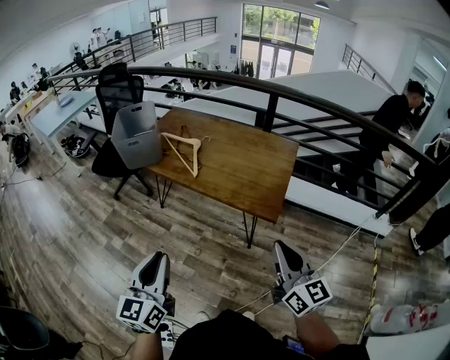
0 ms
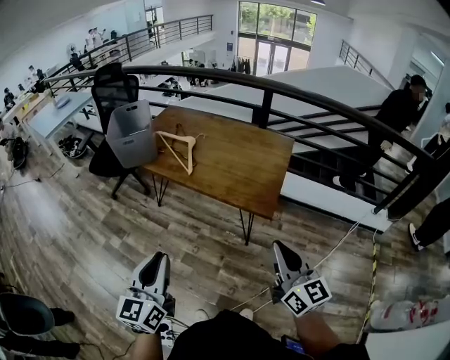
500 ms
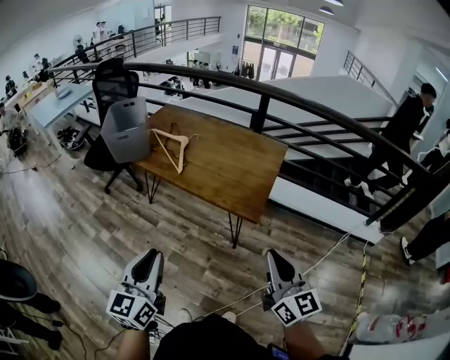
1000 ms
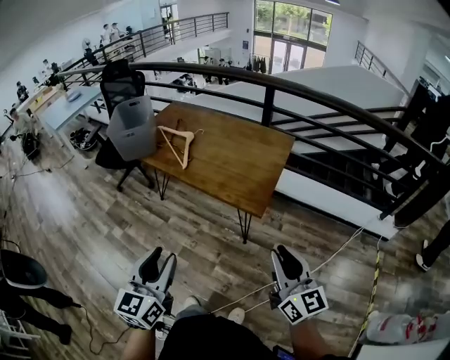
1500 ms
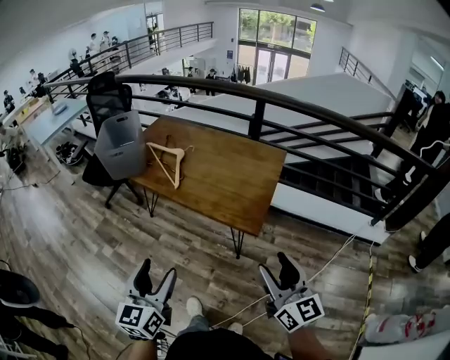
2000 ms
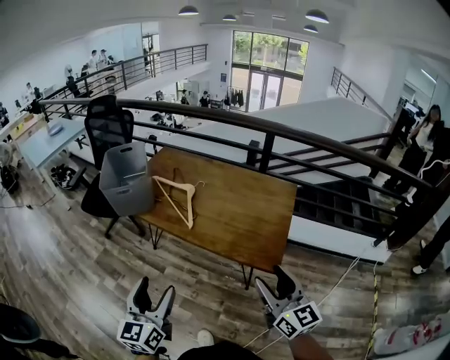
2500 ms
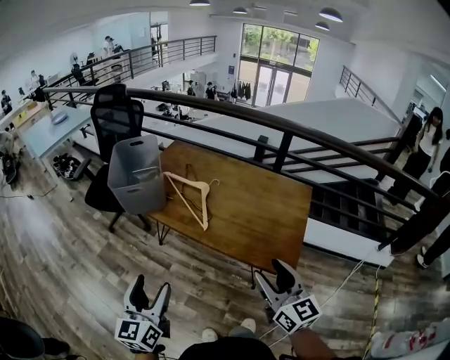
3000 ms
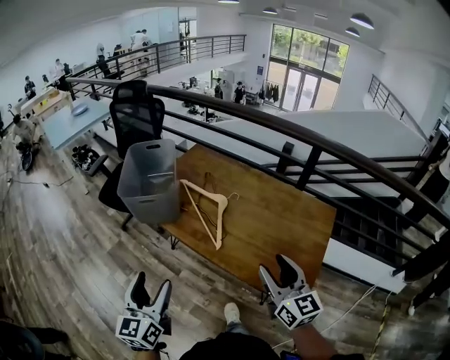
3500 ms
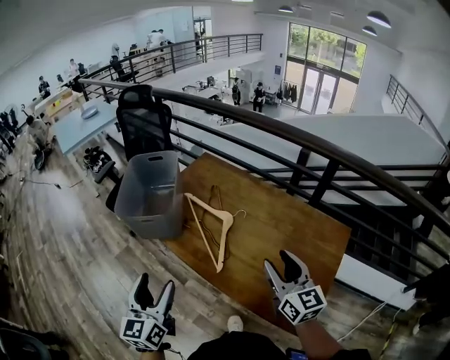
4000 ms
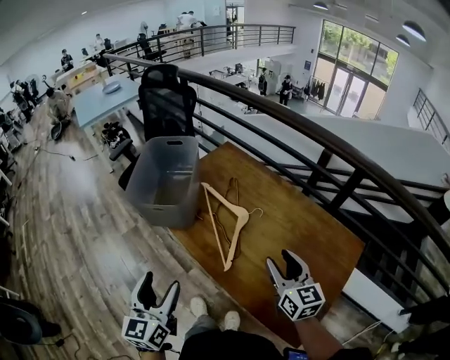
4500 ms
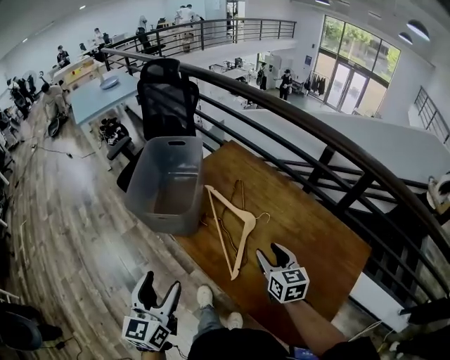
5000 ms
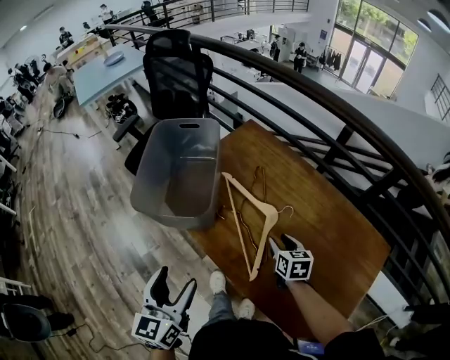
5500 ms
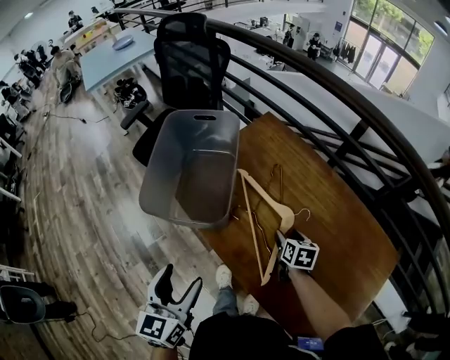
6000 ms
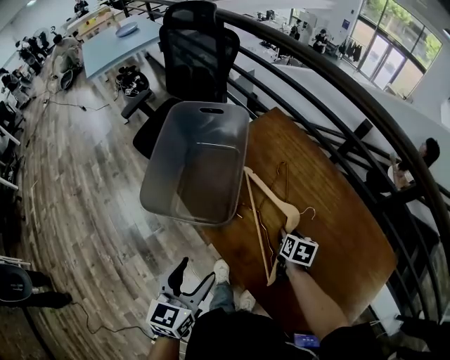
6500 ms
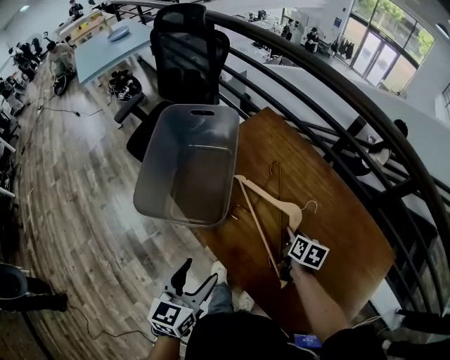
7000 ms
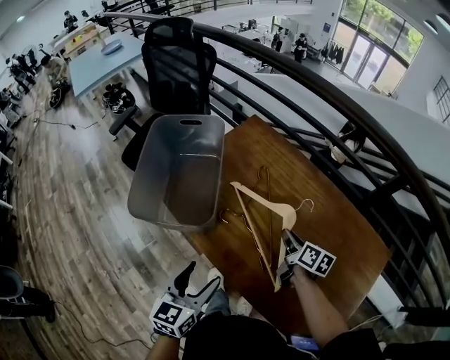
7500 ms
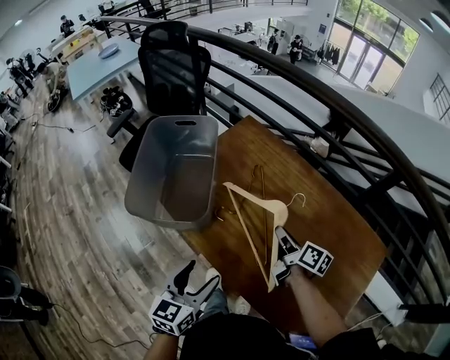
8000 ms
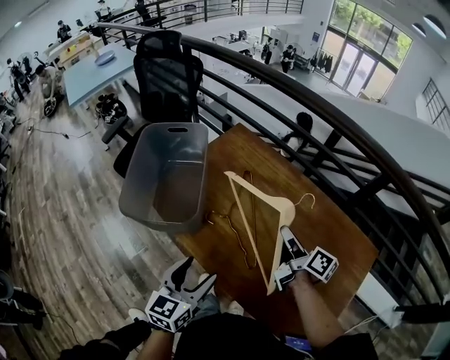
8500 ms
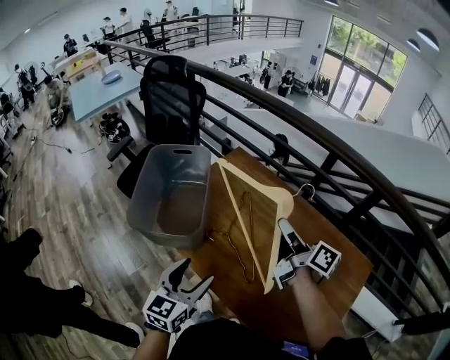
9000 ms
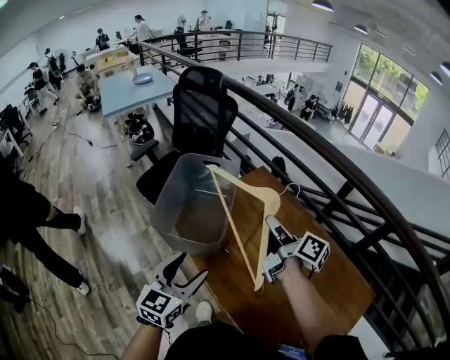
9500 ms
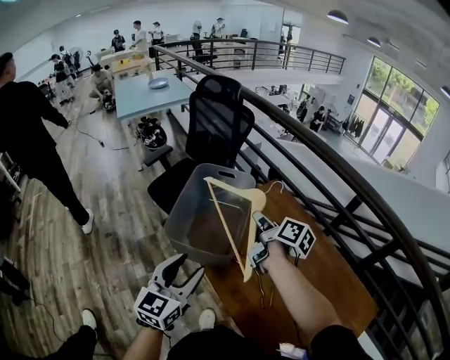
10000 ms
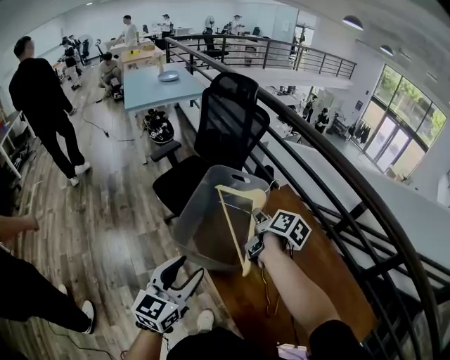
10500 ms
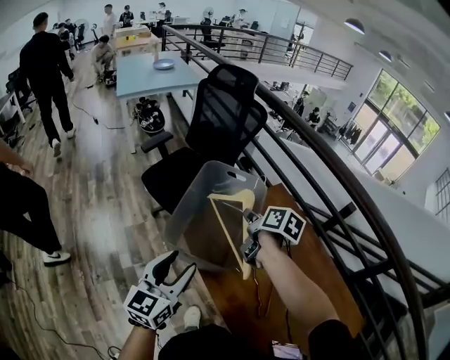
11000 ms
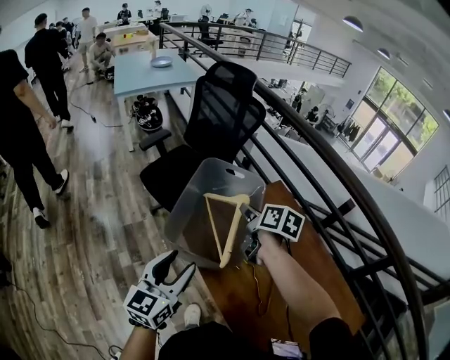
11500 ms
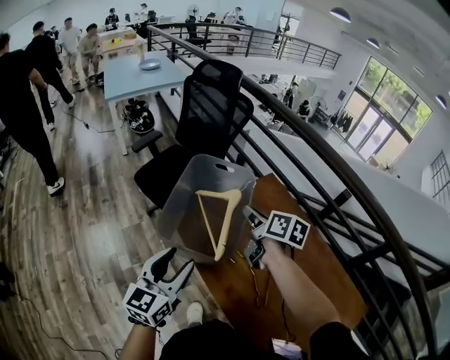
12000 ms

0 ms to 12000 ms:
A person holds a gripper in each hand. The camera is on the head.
0 ms to 2000 ms: Both grippers travel together to the right, some 10 cm. The left gripper opens its fingers. Meanwhile the right gripper opens its fingers.
2000 ms to 4000 ms: Both grippers travel together forward, some 40 cm.
4000 ms to 6000 ms: The left gripper shifts roughly 10 cm forward and downward, while the right gripper travels downward and forward by roughly 35 cm, and tips its fingers downward by about 40 degrees.
6000 ms to 8000 ms: The left gripper shifts some 10 cm to the right; the right gripper travels upward by some 10 cm, rotates some 40 degrees, and closes its fingers.
8000 ms to 10000 ms: The left gripper heads upward, to the left and forward, covering some 15 cm, and changes its angle by roughly 20 degrees, while the right gripper goes roughly 30 cm to the left, upward and forward.
10000 ms to 12000 ms: The left gripper shifts by some 5 cm, while the right gripper rotates some 20 degrees.

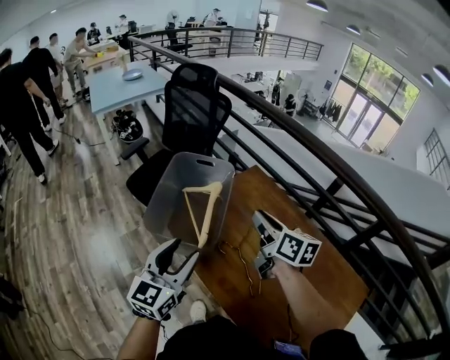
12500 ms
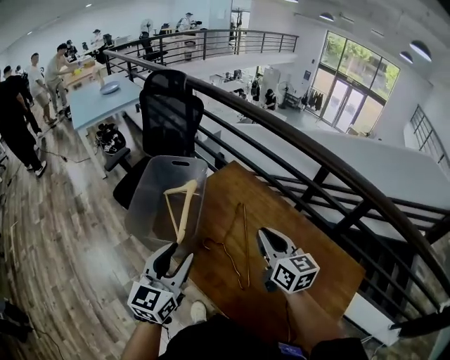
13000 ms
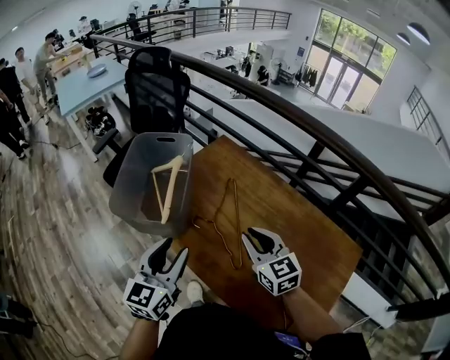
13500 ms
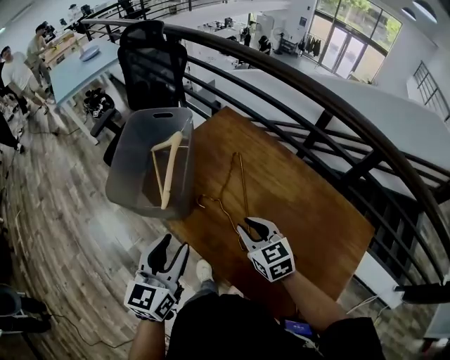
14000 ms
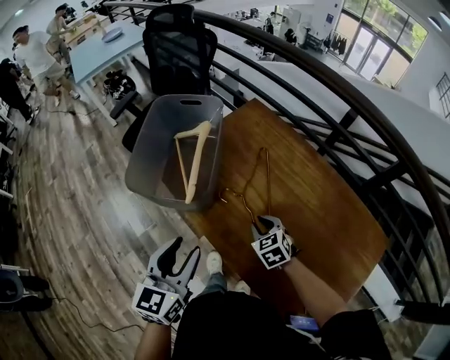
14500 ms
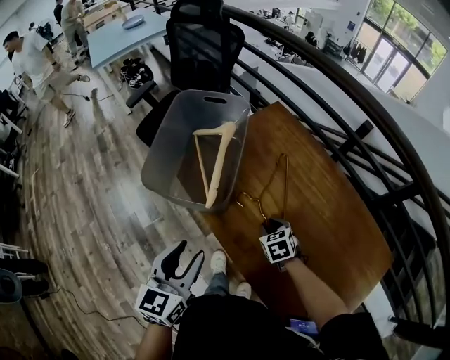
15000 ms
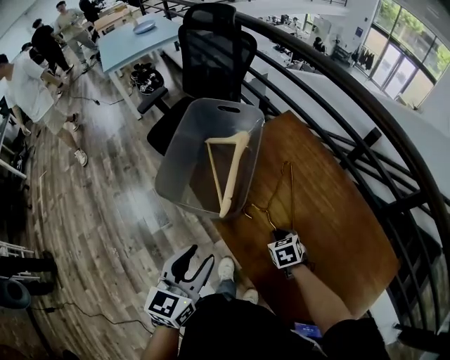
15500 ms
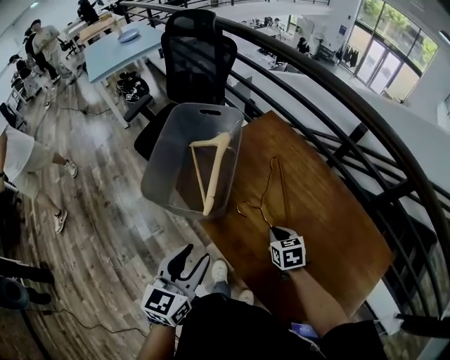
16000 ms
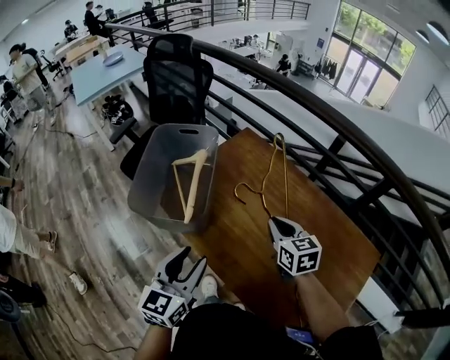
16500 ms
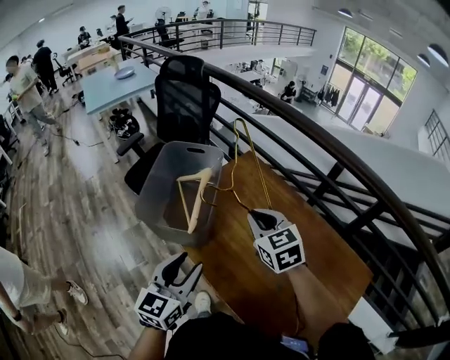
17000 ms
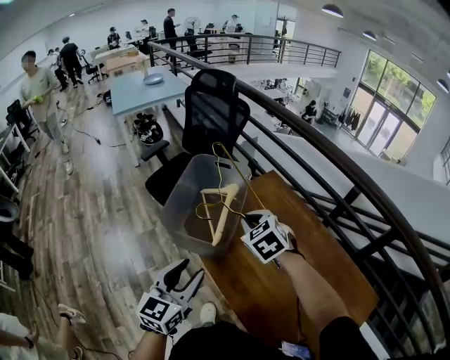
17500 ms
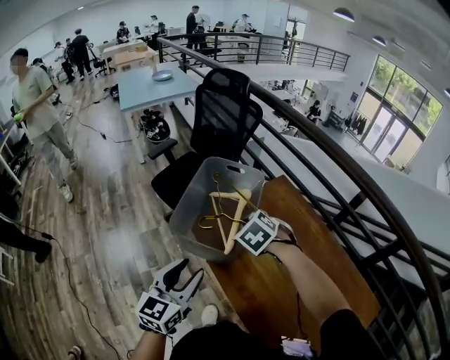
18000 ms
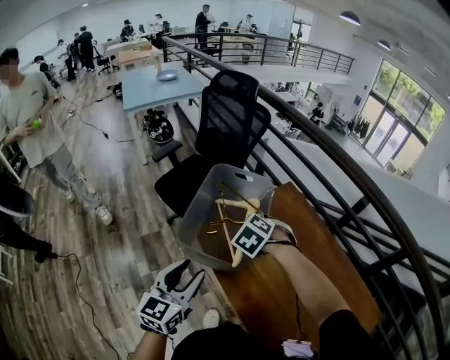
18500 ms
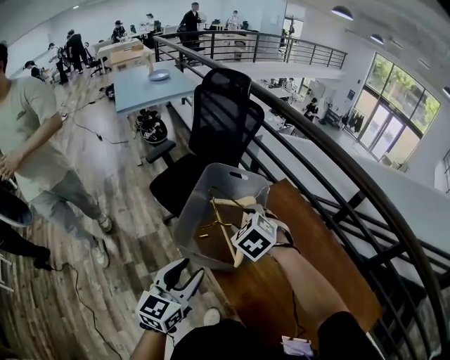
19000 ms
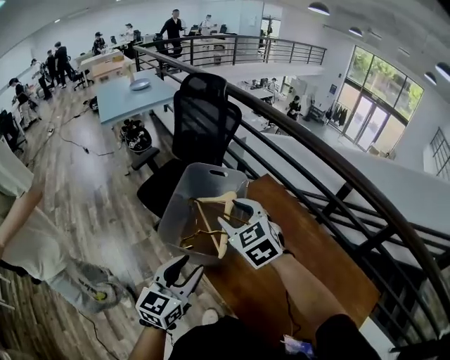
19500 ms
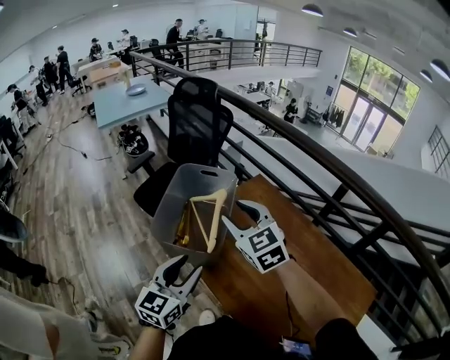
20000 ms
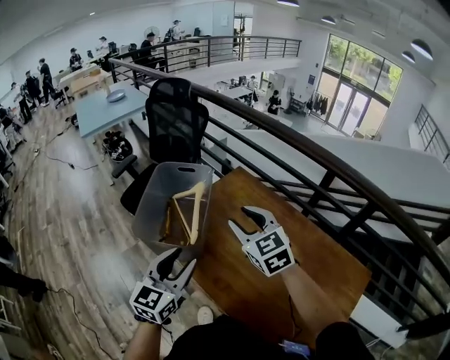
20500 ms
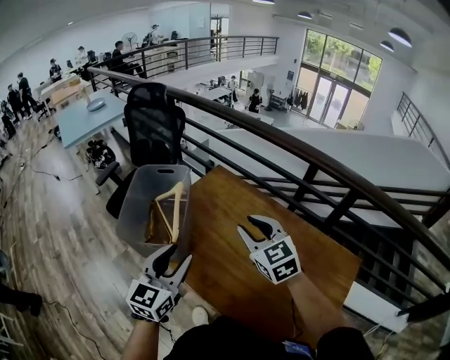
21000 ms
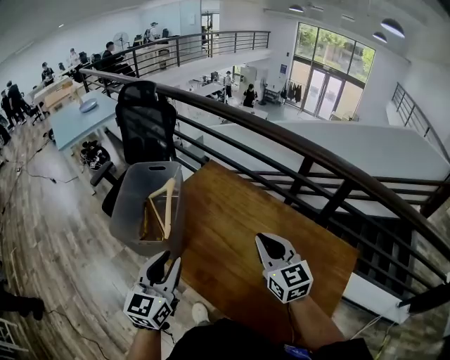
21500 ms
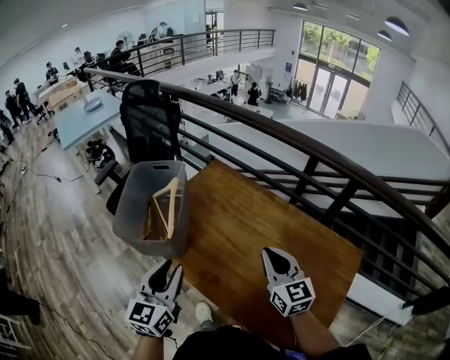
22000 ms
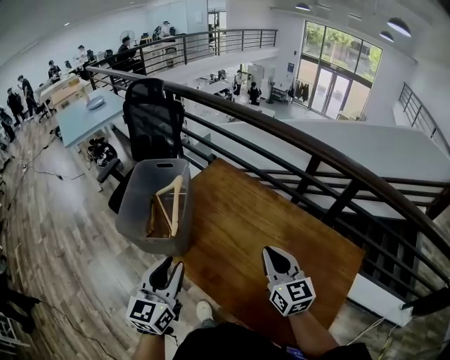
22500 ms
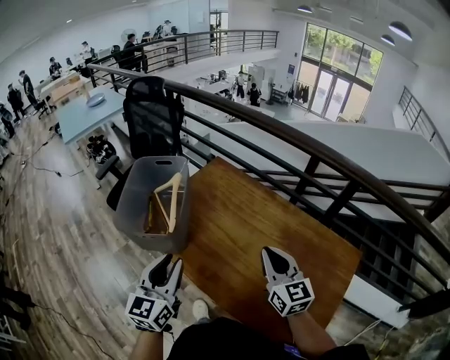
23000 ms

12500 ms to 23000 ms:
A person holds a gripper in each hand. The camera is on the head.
12500 ms to 14500 ms: The right gripper shifts roughly 30 cm downward and backward, and angles its fingers downward, by approximately 40 degrees. Meanwhile the left gripper heads backward and downward, covering about 10 cm.
14500 ms to 16500 ms: The right gripper is displaced upward by approximately 15 cm, and changes its angle by some 30 degrees.
16500 ms to 19000 ms: The left gripper heads to the left and forward, covering roughly 15 cm, while the right gripper travels to the left and forward by about 30 cm, rolls counterclockwise, seen from behind, by approximately 50 degrees, and opens.
19000 ms to 21000 ms: The left gripper heads to the right, covering about 15 cm. Meanwhile the right gripper travels to the right and backward by some 25 cm, and points its fingers about 30 degrees further upward.
21000 ms to 23000 ms: The left gripper ends up some 5 cm from where it was; the right gripper heads backward and to the right, covering some 10 cm, rotates approximately 20 degrees, and closes.

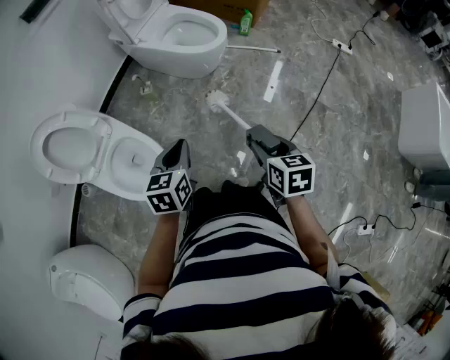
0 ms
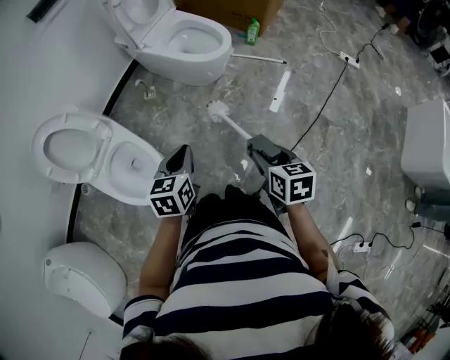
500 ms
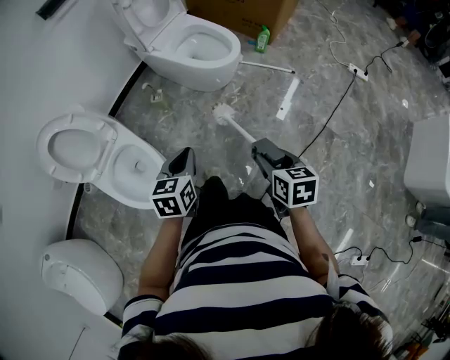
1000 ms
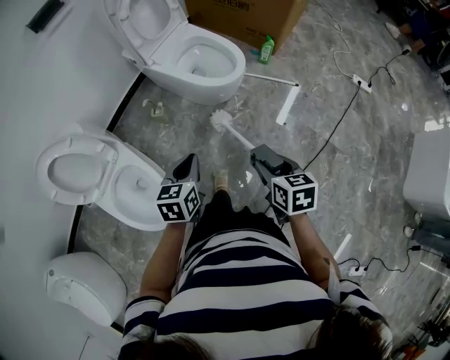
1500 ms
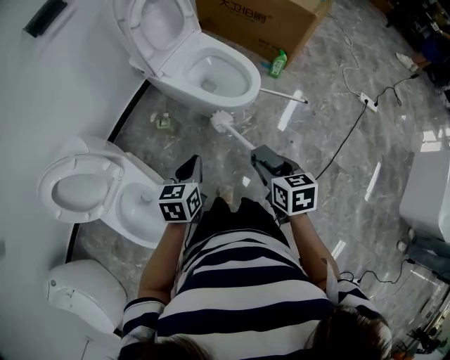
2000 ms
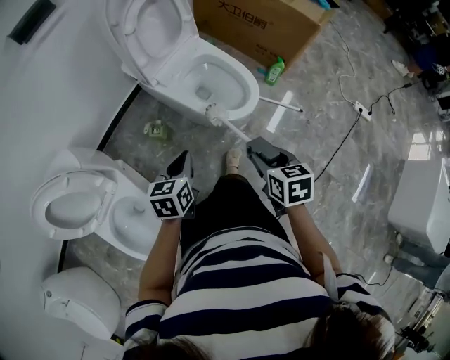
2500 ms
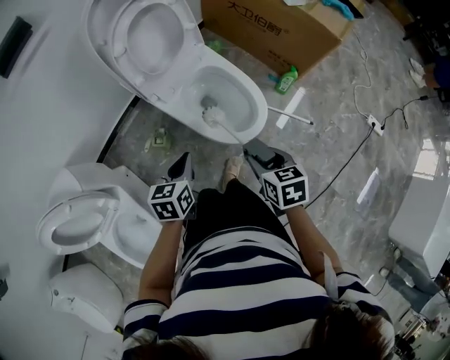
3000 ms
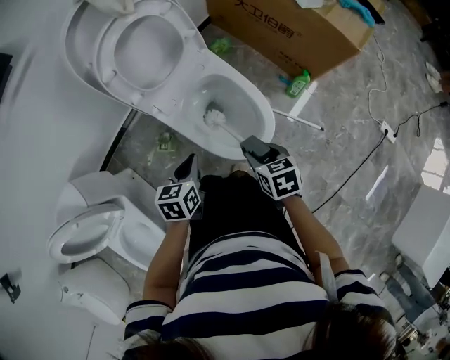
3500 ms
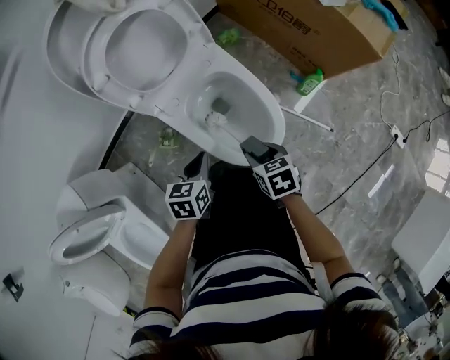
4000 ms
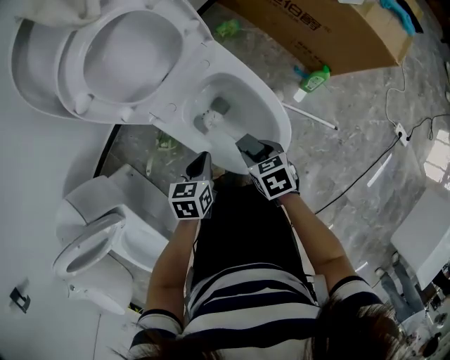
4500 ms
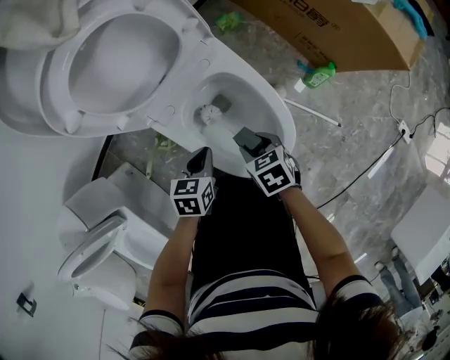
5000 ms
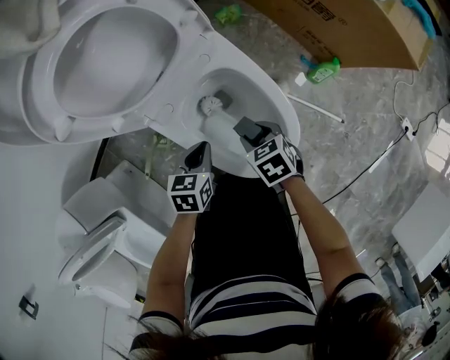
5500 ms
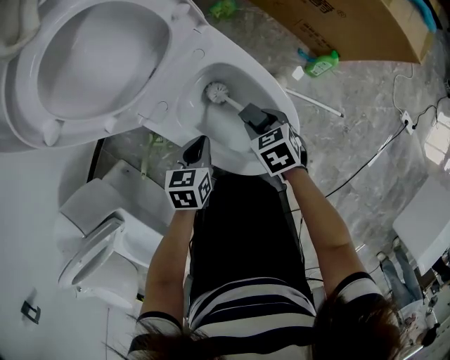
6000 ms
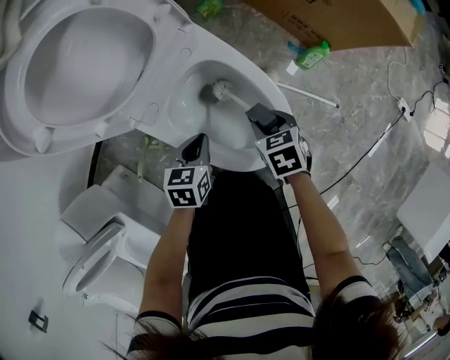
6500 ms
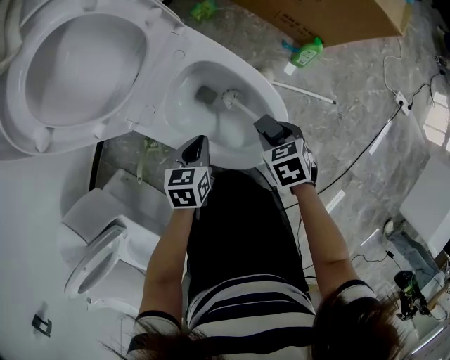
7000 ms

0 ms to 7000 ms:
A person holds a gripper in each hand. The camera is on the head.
0 ms to 2000 ms: Both grippers move forward, about 30 cm.
2000 ms to 3500 ms: Both grippers move forward, some 35 cm.
3500 ms to 5000 ms: Both grippers travel together downward and forward, about 20 cm.
5000 ms to 7000 ms: The right gripper moves to the right, some 10 cm.
